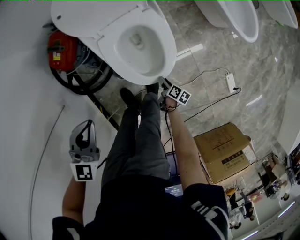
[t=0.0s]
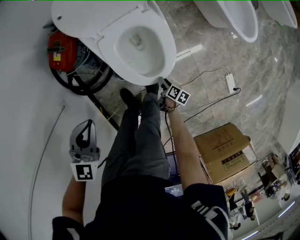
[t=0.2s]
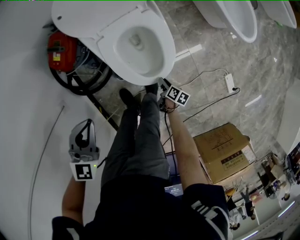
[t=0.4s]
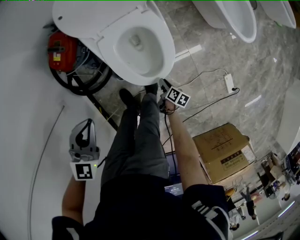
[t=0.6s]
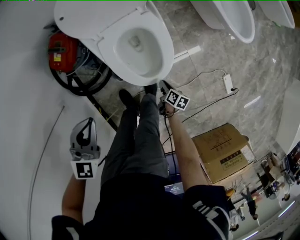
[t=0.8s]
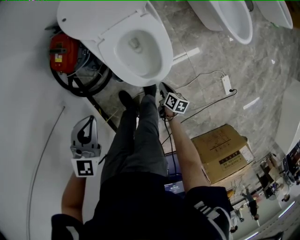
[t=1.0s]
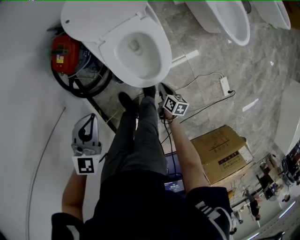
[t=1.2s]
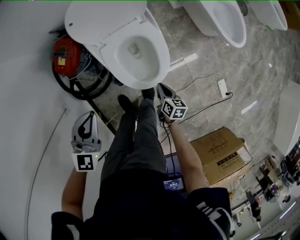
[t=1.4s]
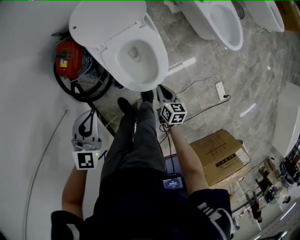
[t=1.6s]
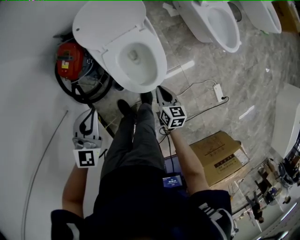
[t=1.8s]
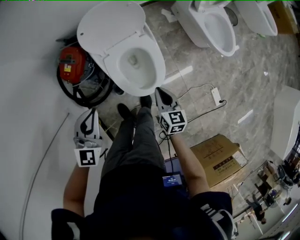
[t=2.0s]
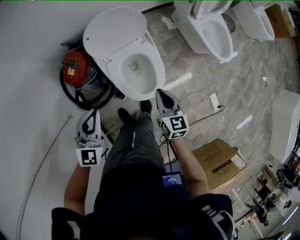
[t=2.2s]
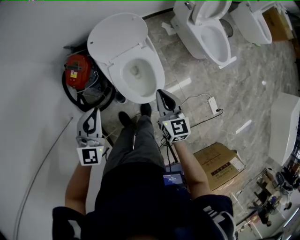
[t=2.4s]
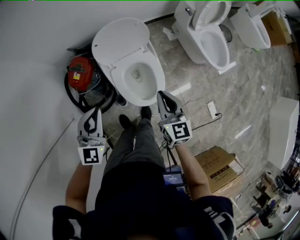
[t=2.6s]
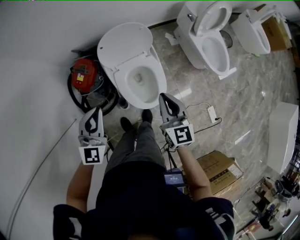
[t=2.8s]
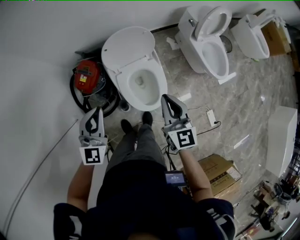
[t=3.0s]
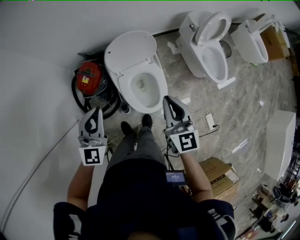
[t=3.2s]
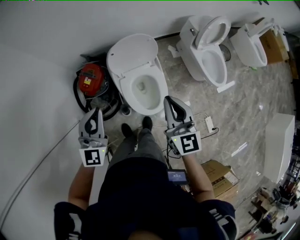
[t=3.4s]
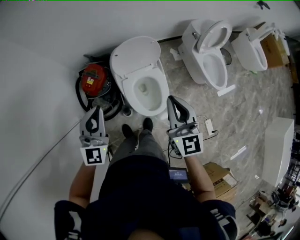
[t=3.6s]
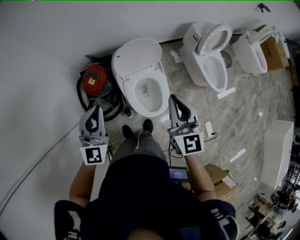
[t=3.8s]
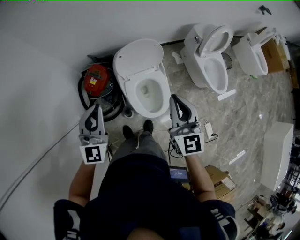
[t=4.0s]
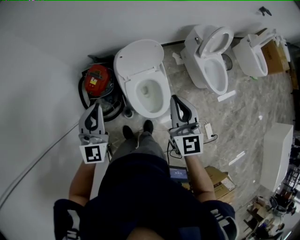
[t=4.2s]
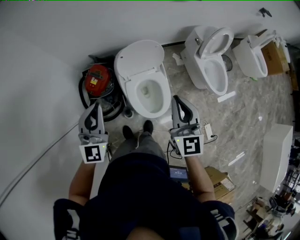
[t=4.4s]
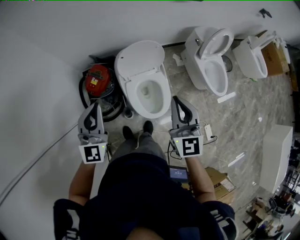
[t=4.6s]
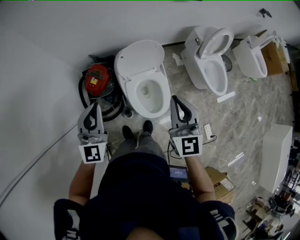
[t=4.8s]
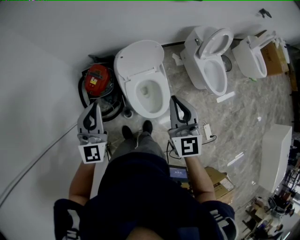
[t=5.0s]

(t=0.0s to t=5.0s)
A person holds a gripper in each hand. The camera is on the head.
t=0.0s - t=1.6s: The right gripper is displaced upward by about 25 cm, turns by about 40 degrees, and closes up. Meanwhile the left gripper heads upward, covering some 5 cm.
t=1.6s - t=3.4s: The left gripper moves upward, roughly 25 cm, and turns by roughly 30 degrees. Meanwhile the right gripper is displaced upward by some 50 cm, and points its fingers some 30 degrees further upward.
t=3.4s - t=5.0s: Both grippers travel together upward, roughly 5 cm.

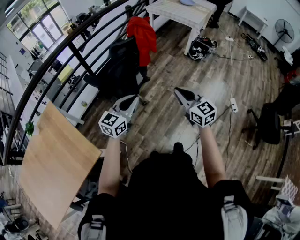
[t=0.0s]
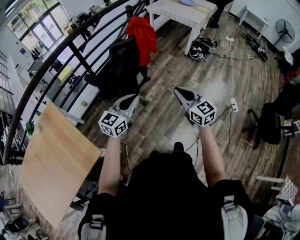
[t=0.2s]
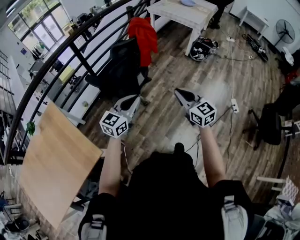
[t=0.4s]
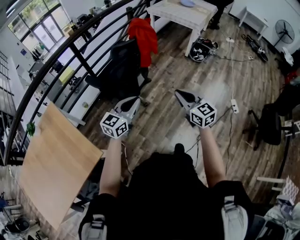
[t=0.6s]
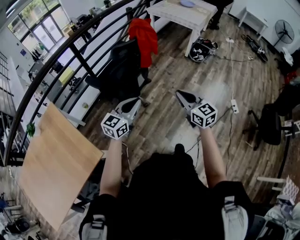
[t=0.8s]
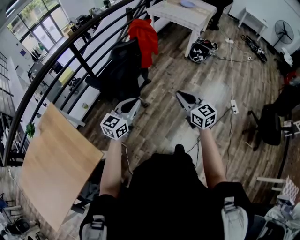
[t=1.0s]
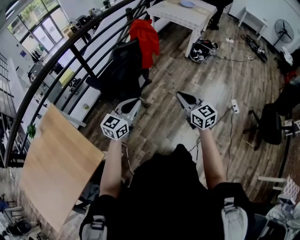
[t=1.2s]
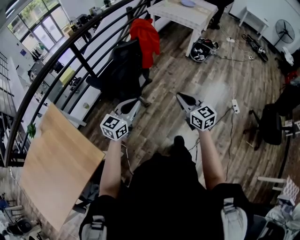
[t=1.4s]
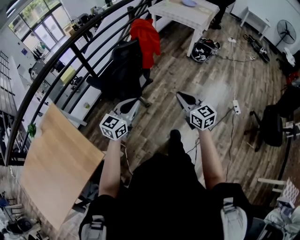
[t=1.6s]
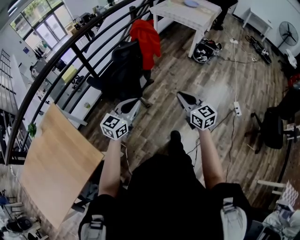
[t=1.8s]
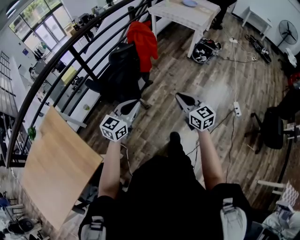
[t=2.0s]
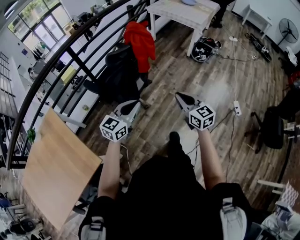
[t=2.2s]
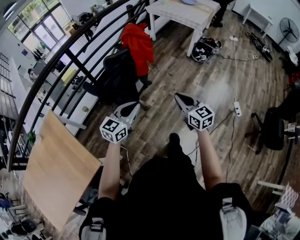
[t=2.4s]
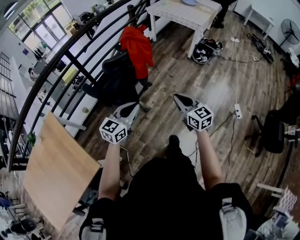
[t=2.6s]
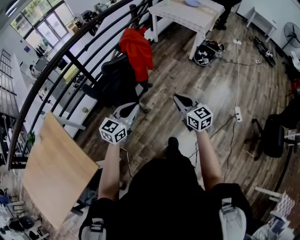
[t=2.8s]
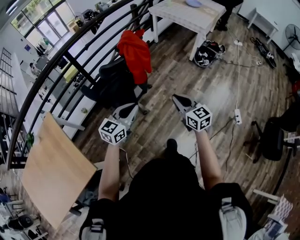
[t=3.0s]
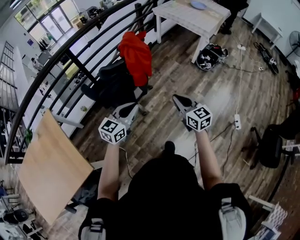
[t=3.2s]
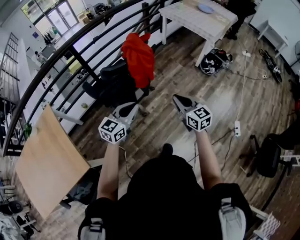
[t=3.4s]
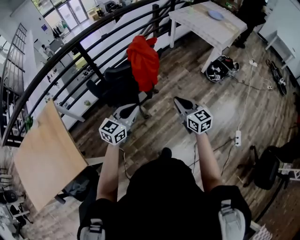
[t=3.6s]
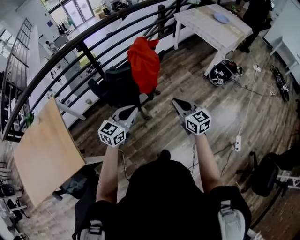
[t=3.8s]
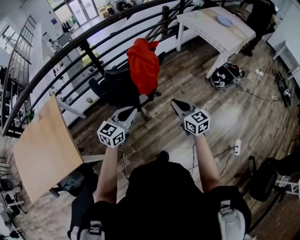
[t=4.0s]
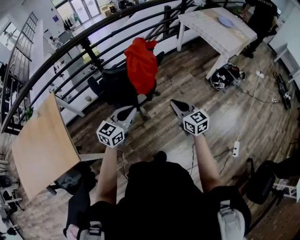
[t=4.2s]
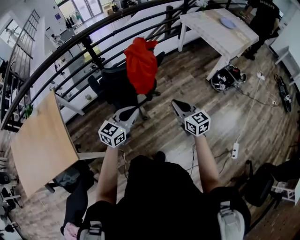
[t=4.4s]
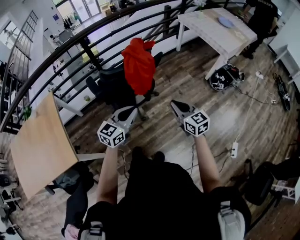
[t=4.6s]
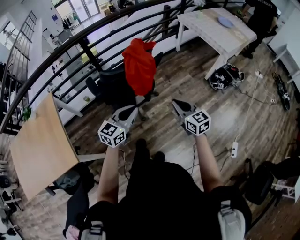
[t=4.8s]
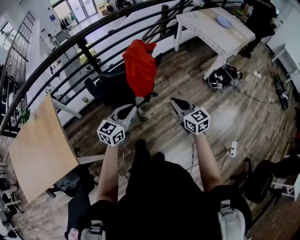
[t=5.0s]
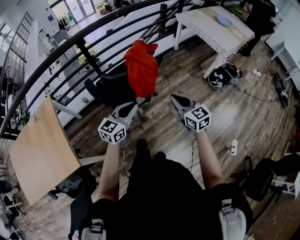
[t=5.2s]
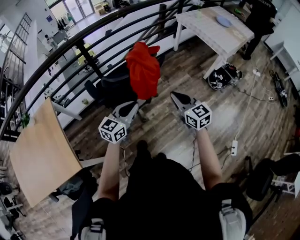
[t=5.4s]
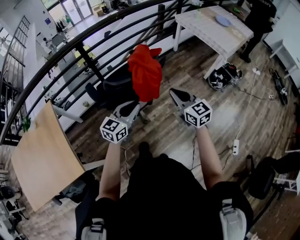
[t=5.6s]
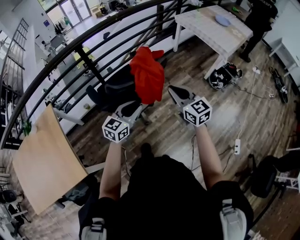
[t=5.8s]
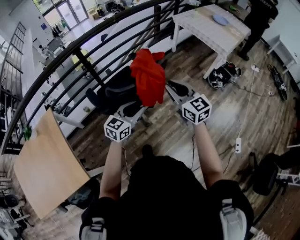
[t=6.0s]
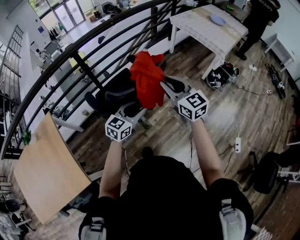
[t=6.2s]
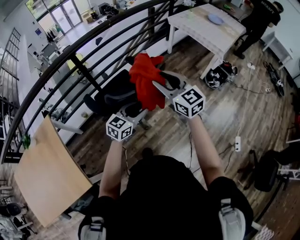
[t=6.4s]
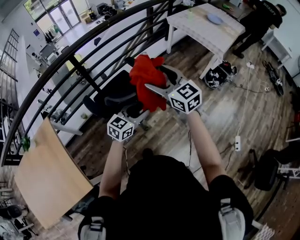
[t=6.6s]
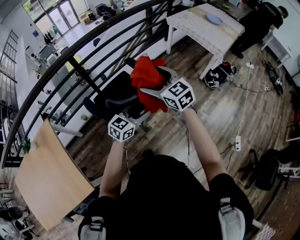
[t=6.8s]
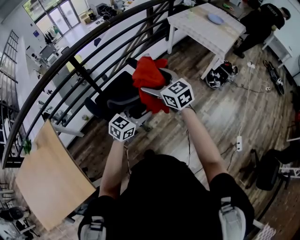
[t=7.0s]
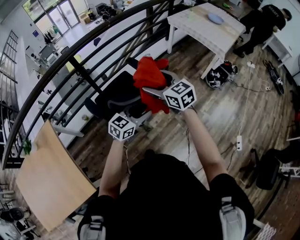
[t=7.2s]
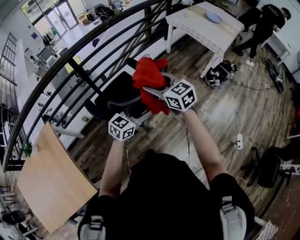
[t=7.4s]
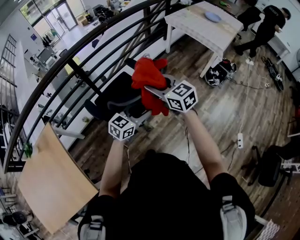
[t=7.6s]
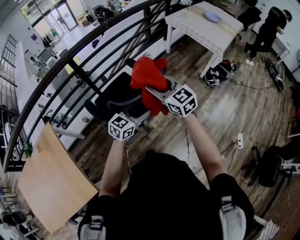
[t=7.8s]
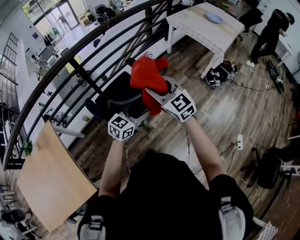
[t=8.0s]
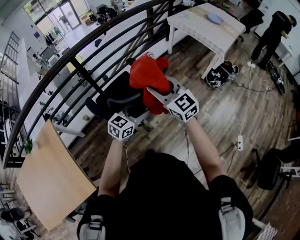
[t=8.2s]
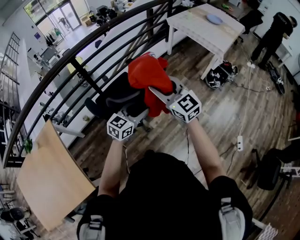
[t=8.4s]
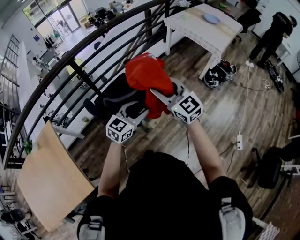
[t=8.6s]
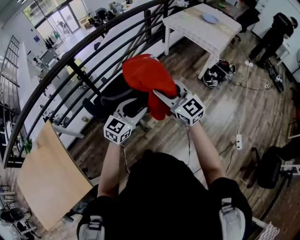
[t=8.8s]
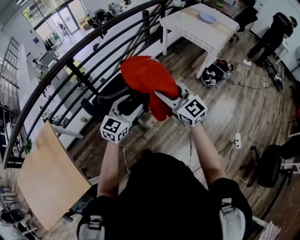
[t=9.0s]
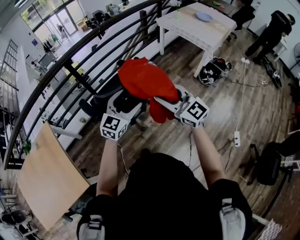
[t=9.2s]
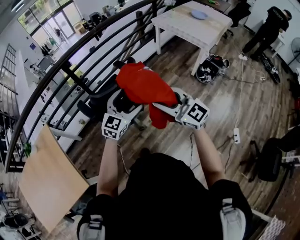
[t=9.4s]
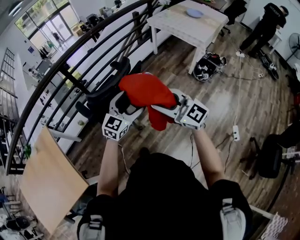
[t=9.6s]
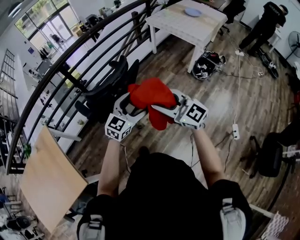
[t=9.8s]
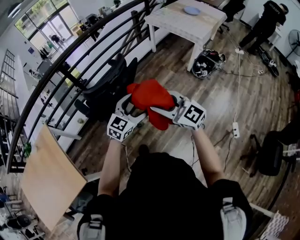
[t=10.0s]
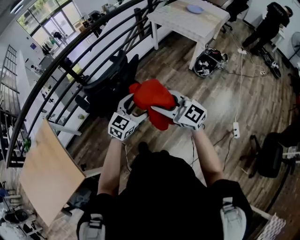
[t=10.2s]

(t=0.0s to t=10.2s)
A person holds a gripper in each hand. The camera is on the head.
t=0.0s - t=1.4s: The grippers stay close to where they were, moving slightly.
t=1.4s - t=3.0s: The right gripper is displaced forward by about 15 cm; the left gripper travels forward and to the right by about 15 cm.
t=3.0s - t=4.4s: The left gripper is displaced to the right and forward by about 10 cm, while the right gripper travels forward by about 10 cm.
t=4.4s - t=5.8s: The left gripper is displaced forward by some 10 cm; the right gripper is displaced forward, upward and to the left by about 15 cm.
t=5.8s - t=7.2s: The right gripper moves to the left and forward, roughly 15 cm, and opens. Meanwhile the left gripper goes about 5 cm forward.
t=7.2s - t=8.8s: The right gripper moves backward and to the right, about 10 cm, swivels approximately 20 degrees, and closes its fingers. The left gripper heads upward, covering approximately 5 cm.
t=8.8s - t=10.2s: The right gripper goes approximately 20 cm backward and to the right. Meanwhile the left gripper heads to the right and backward, covering approximately 15 cm, and opens its fingers.

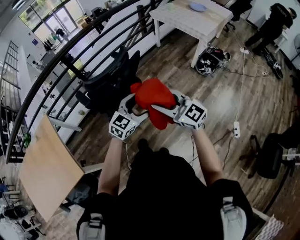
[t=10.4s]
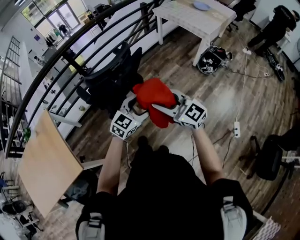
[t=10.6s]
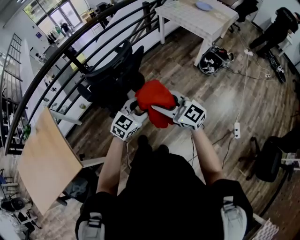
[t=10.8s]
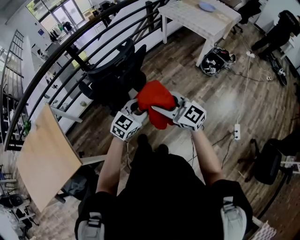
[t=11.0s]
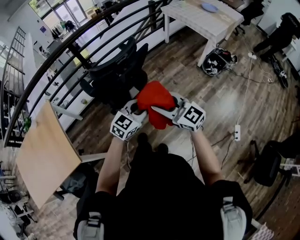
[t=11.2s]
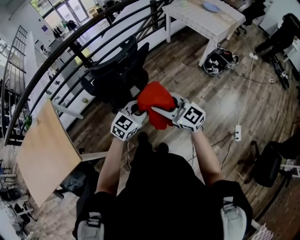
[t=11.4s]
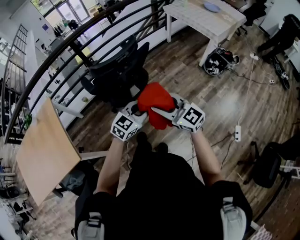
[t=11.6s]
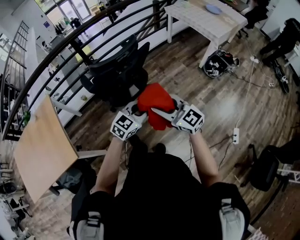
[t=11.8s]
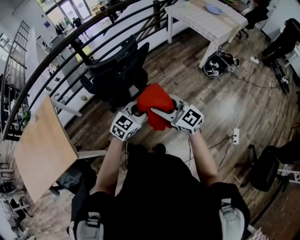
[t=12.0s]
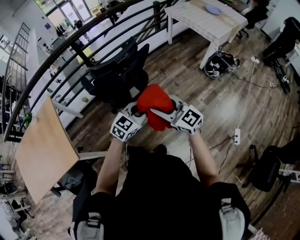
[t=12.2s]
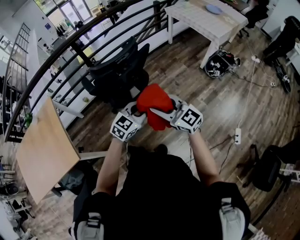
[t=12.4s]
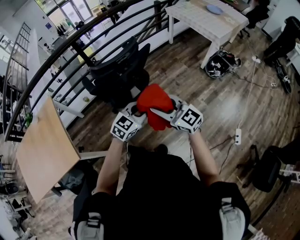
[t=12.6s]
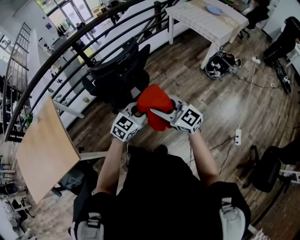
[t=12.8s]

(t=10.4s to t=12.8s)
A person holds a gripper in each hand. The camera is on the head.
t=10.4s - t=11.6s: The right gripper moves about 5 cm. Meanwhile the left gripper travels backward by roughly 5 cm, and closes up.
t=11.6s - t=12.8s: Both grippers stay put.

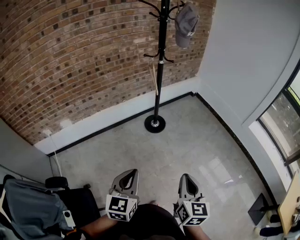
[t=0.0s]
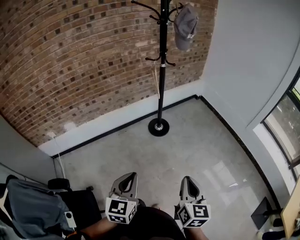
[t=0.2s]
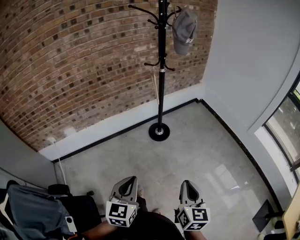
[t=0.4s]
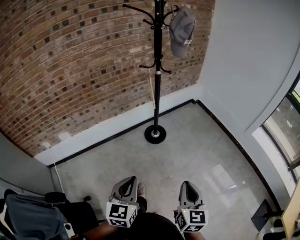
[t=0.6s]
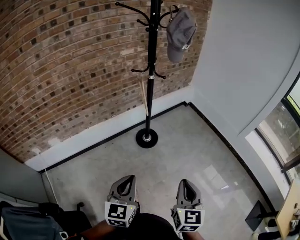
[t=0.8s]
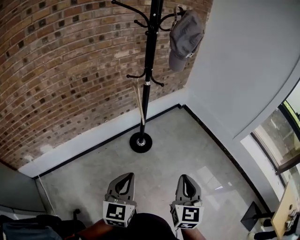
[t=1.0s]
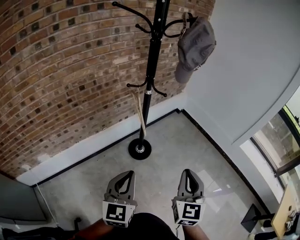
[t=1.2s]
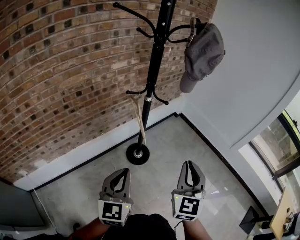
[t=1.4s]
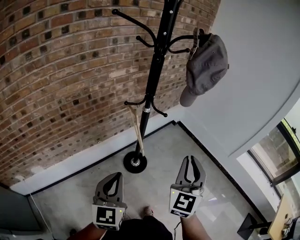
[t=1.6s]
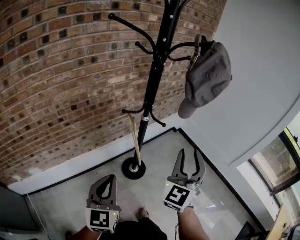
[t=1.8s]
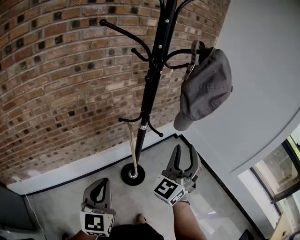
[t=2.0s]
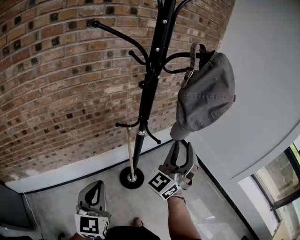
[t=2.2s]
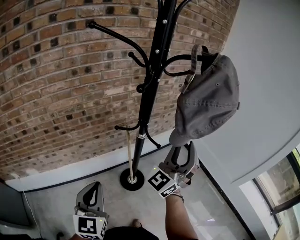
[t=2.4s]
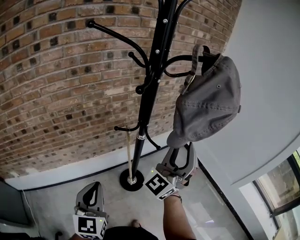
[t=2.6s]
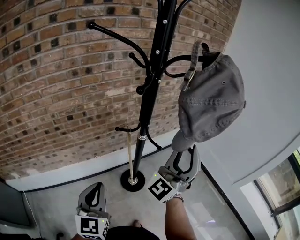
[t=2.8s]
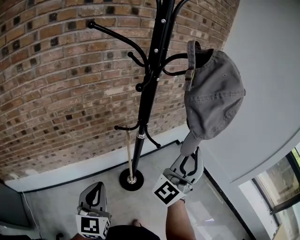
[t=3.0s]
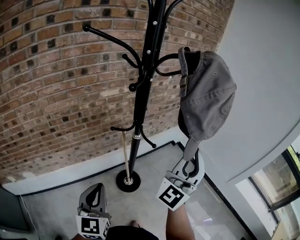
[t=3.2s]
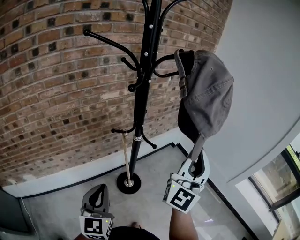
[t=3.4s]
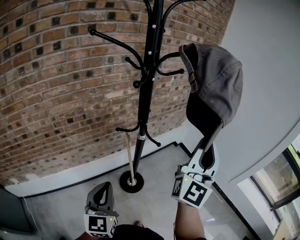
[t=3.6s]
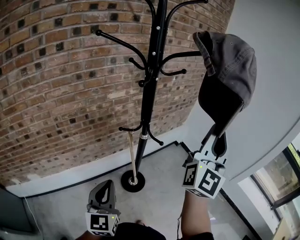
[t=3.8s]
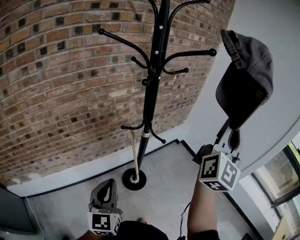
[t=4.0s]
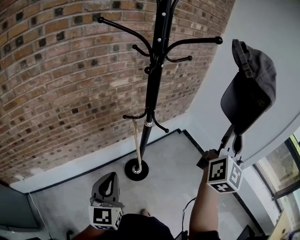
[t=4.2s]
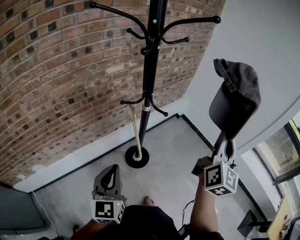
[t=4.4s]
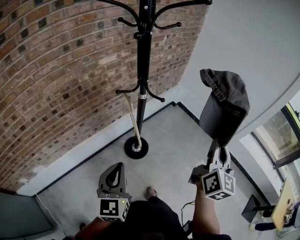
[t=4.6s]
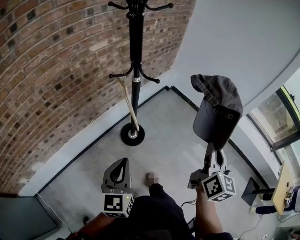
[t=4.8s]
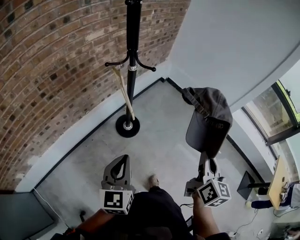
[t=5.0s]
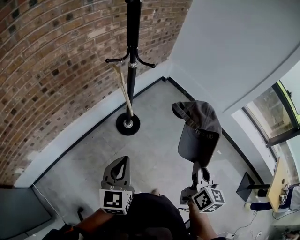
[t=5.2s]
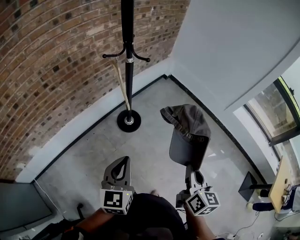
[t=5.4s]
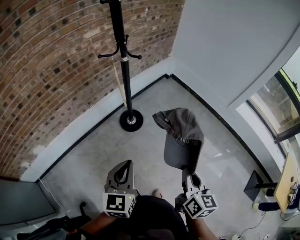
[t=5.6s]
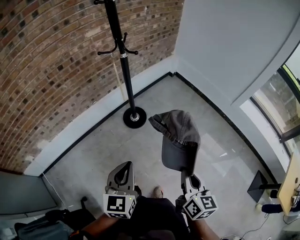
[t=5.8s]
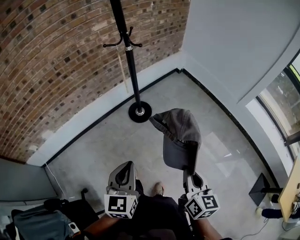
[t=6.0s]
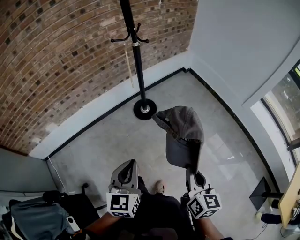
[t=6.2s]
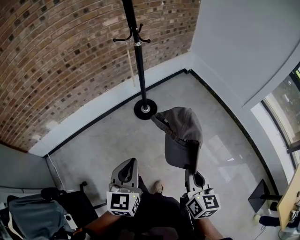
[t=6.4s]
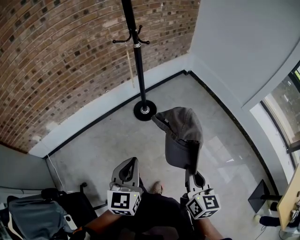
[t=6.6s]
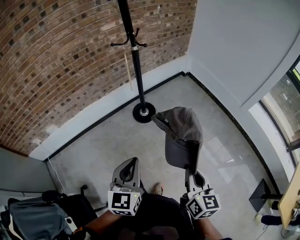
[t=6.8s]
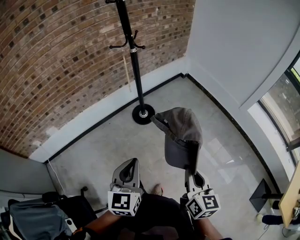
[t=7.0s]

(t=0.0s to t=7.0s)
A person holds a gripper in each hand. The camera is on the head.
t=0.0s - t=1.4s: Both grippers are carried forward, approximately 40 cm. The right gripper turns by some 30 degrees.
t=1.4s - t=2.8s: The left gripper travels forward by some 15 cm, while the right gripper moves forward, about 30 cm, points its fingers roughly 30 degrees further upward, and opens.
t=2.8s - t=4.2s: The right gripper moves to the right and upward, some 15 cm, rotates around the line of its fingers by approximately 40 degrees, clockwise from behind, and closes up.
t=4.2s - t=5.6s: The left gripper heads backward, to the right and downward, covering roughly 30 cm, and changes its angle by approximately 20 degrees; the right gripper moves backward and downward, approximately 50 cm, and angles its fingers downward, by roughly 40 degrees.
t=5.6s - t=7.0s: The two grippers go approximately 15 cm backward and to the right.
